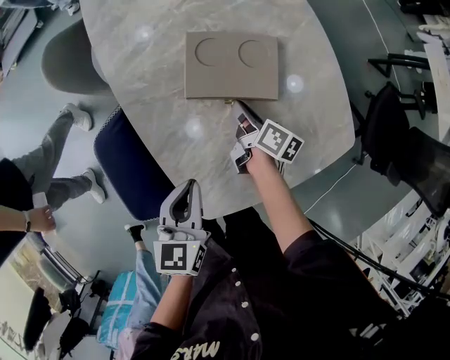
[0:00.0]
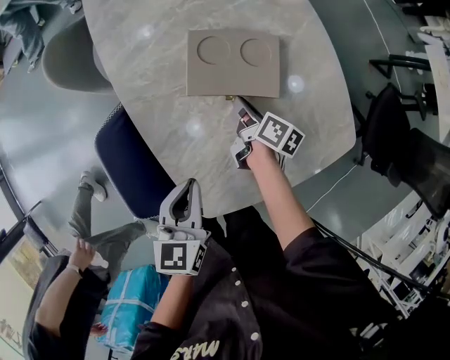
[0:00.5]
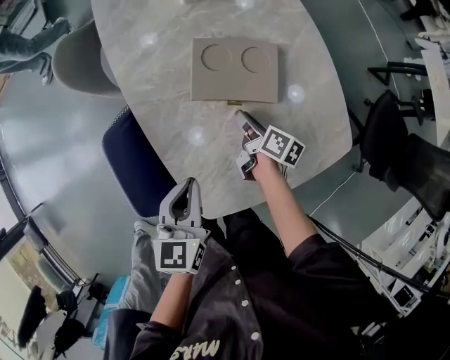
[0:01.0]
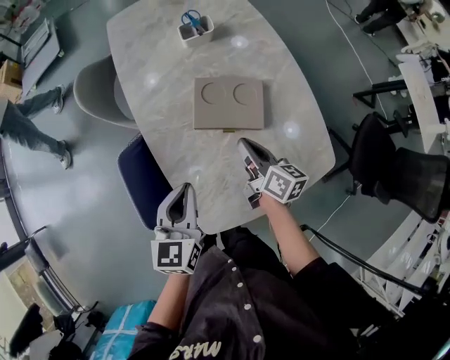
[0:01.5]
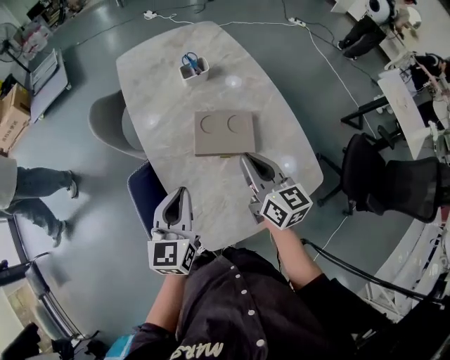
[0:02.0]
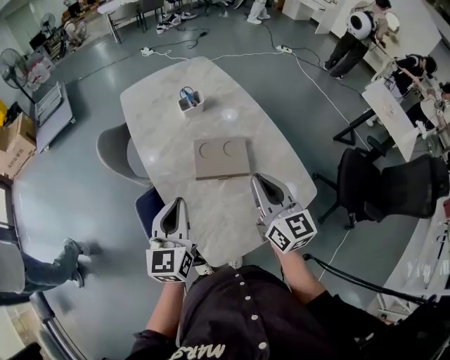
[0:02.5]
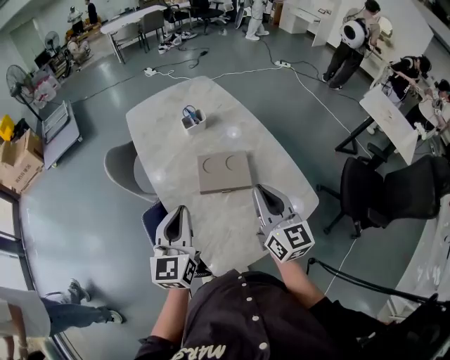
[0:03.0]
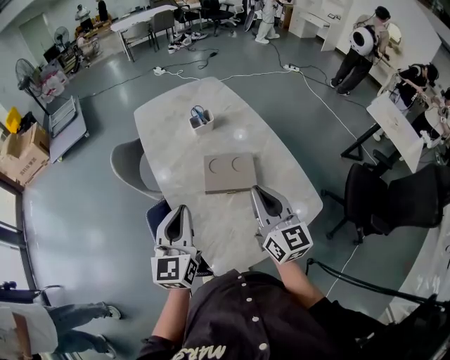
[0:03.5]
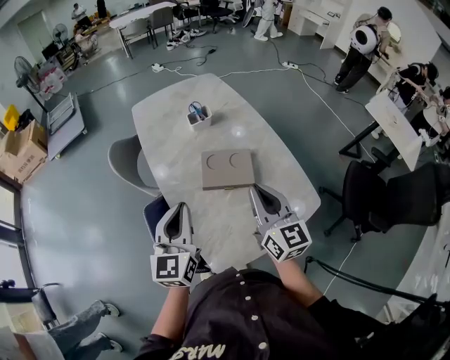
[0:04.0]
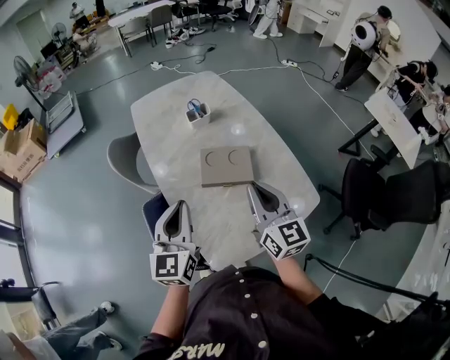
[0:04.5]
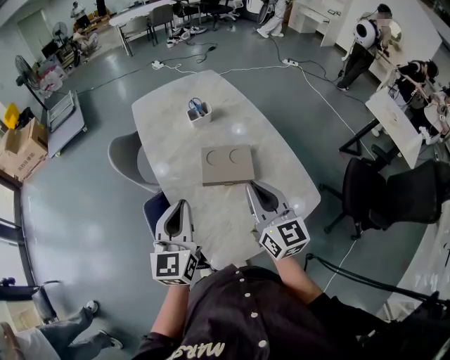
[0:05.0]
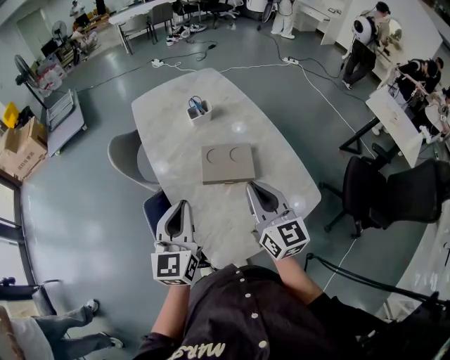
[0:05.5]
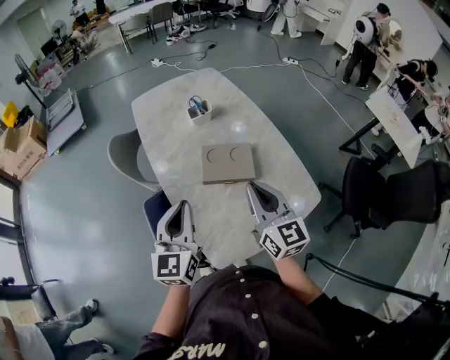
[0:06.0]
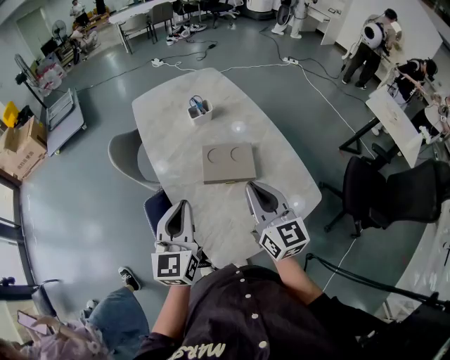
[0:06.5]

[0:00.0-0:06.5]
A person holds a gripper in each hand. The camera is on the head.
0:00.0 to 0:02.0: The left gripper heads upward, covering some 15 cm, and turns by some 20 degrees. Meanwhile the right gripper moves upward, about 30 cm, and rotates around the line of its fingers by roughly 50 degrees, counterclockwise from behind.
0:02.0 to 0:04.5: The left gripper goes approximately 10 cm upward; the right gripper is displaced upward and backward by approximately 10 cm.
0:04.5 to 0:06.5: The grippers stay close to where they were, moving slightly.

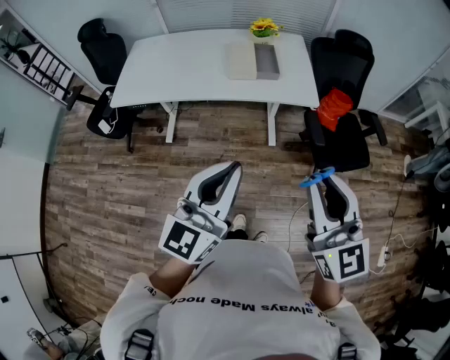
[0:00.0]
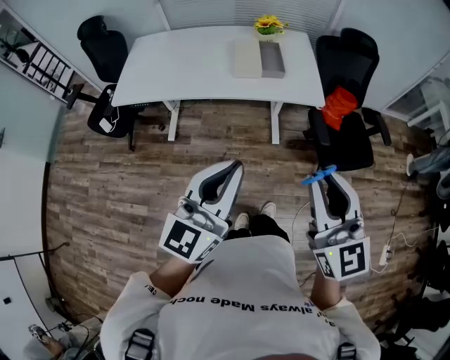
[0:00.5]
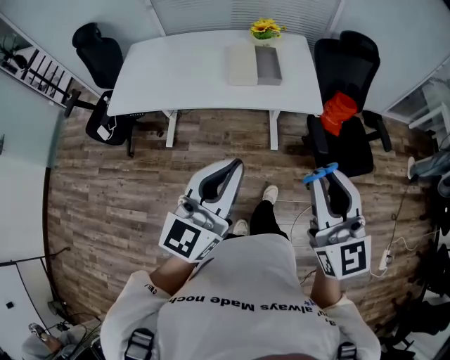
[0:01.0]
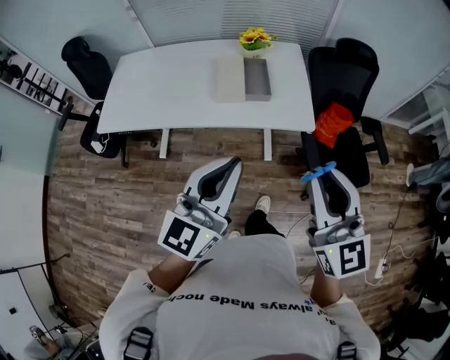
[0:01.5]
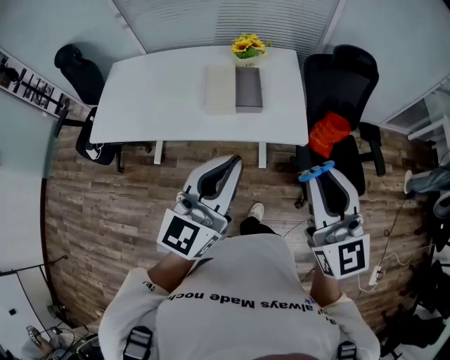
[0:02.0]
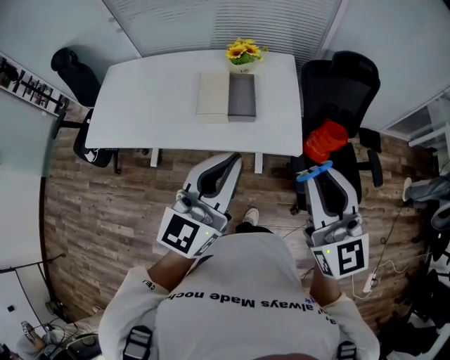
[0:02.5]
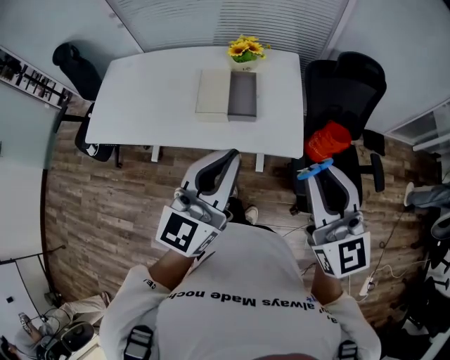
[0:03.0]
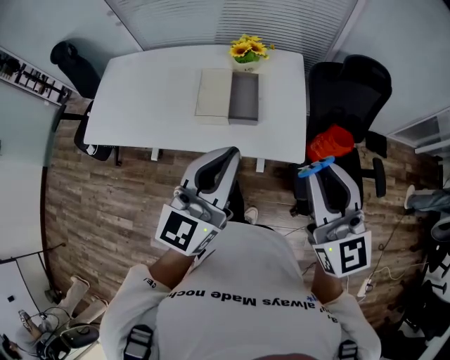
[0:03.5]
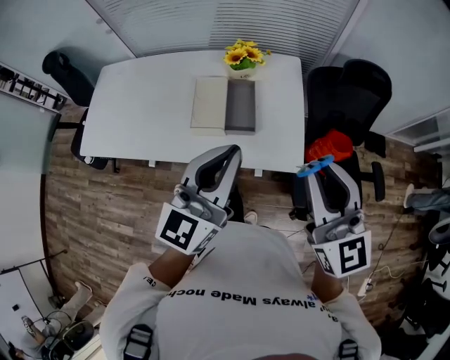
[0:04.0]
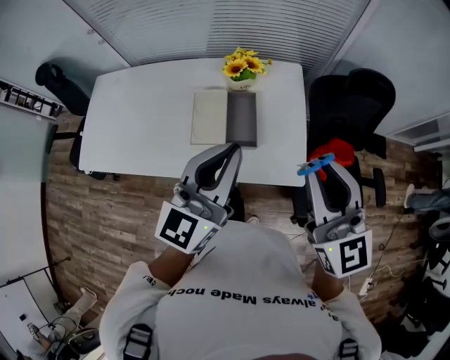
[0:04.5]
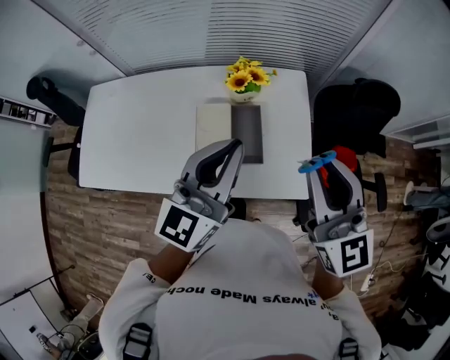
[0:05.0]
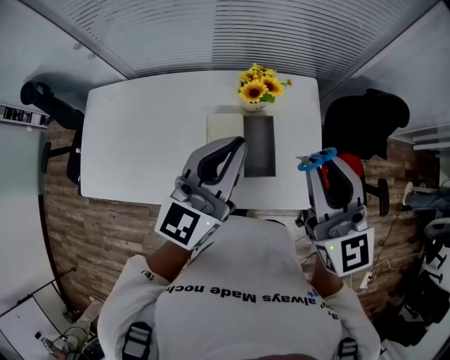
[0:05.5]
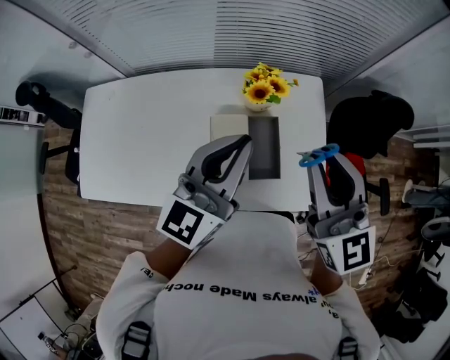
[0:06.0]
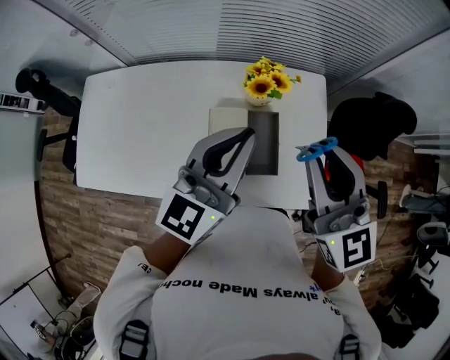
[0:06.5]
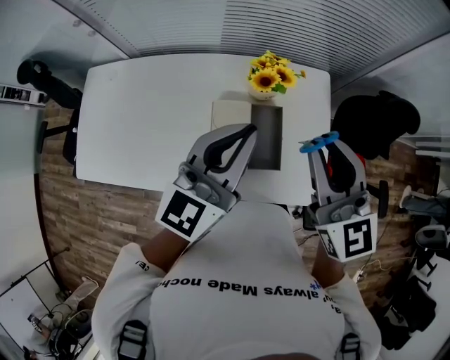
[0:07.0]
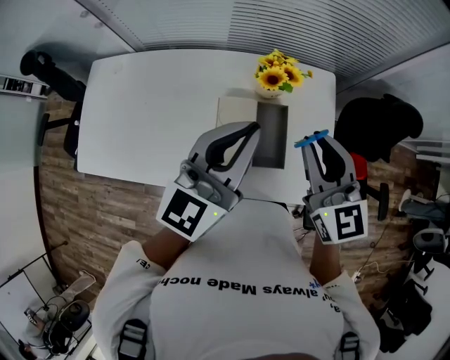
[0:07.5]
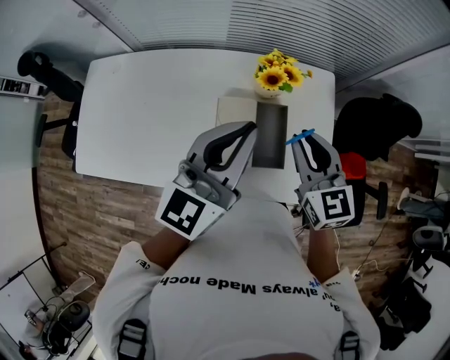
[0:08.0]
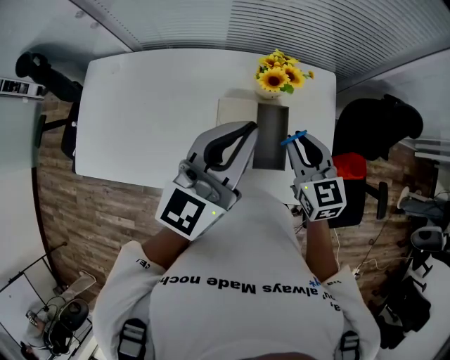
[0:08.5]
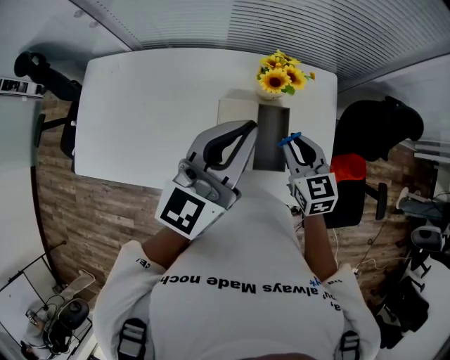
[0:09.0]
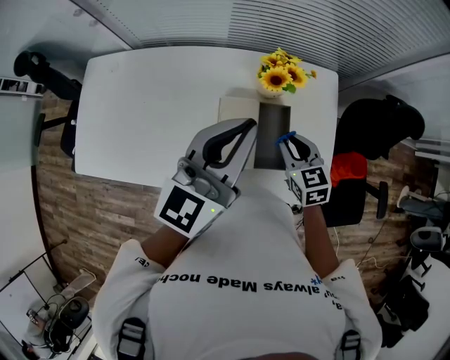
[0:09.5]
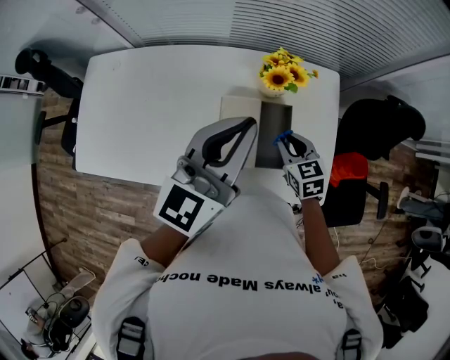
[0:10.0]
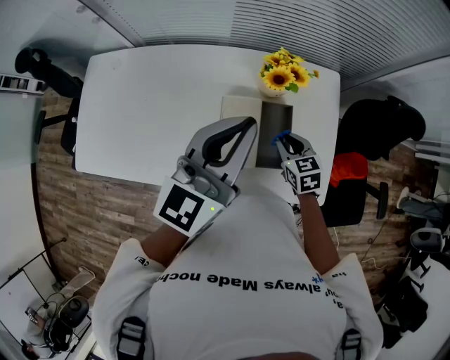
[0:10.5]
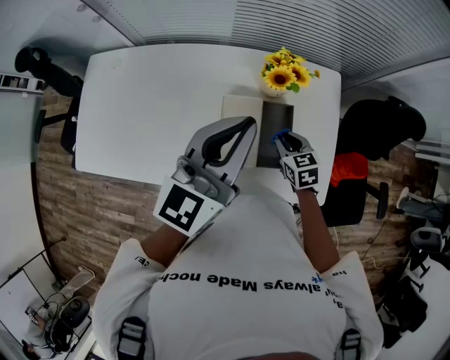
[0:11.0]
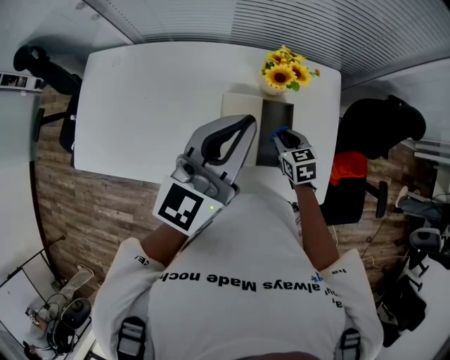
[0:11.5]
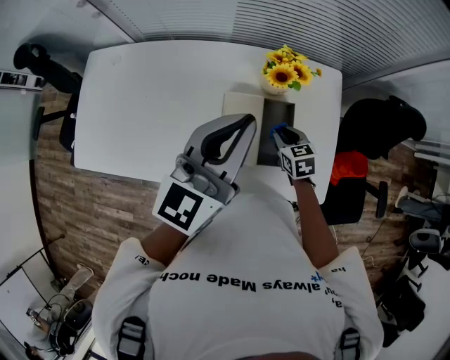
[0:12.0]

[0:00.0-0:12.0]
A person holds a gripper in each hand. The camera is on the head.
0:00.0 to 0:02.0: Both grippers travel together forward, about 25 cm.
0:02.0 to 0:04.0: Both grippers travel together forward, some 15 cm.
0:04.0 to 0:06.0: The two grippers go roughly 25 cm forward and to the left.
0:06.0 to 0:08.0: The right gripper moves downward, approximately 15 cm.
0:08.0 to 0:10.0: The right gripper heads downward, covering some 15 cm, and swivels approximately 20 degrees.
0:10.0 to 0:12.0: The right gripper travels downward by some 5 cm.

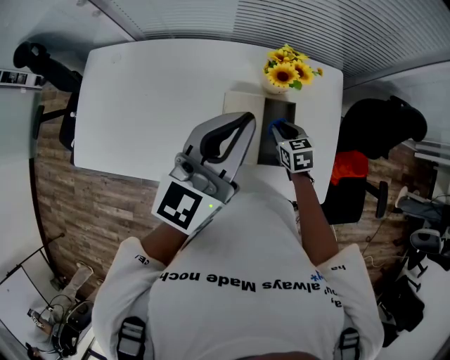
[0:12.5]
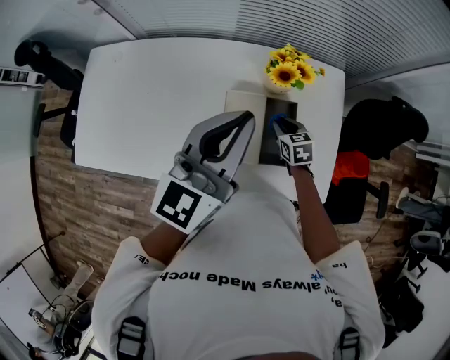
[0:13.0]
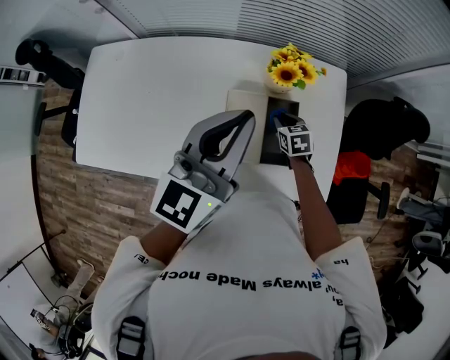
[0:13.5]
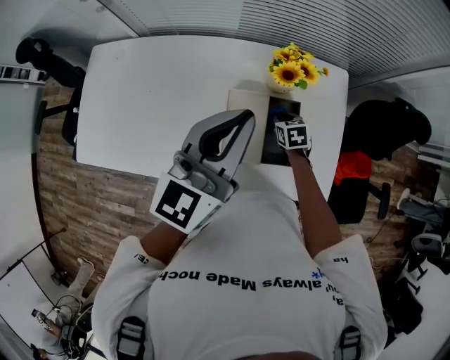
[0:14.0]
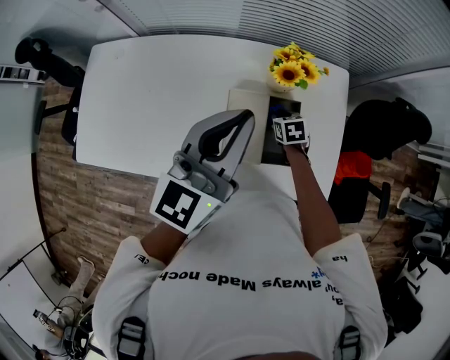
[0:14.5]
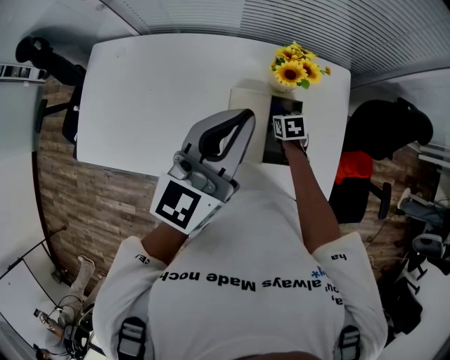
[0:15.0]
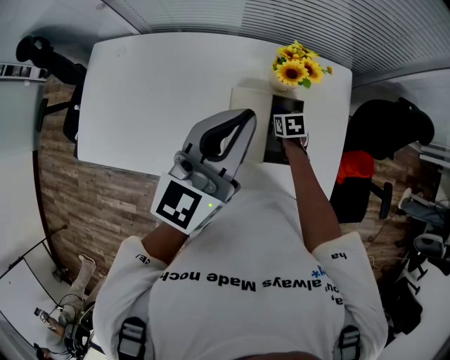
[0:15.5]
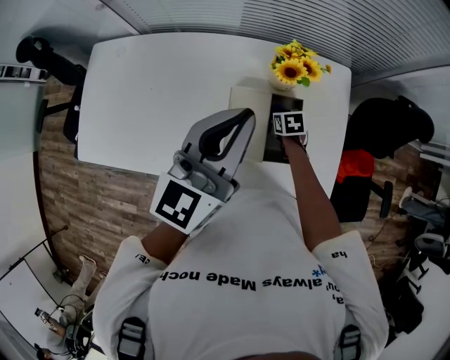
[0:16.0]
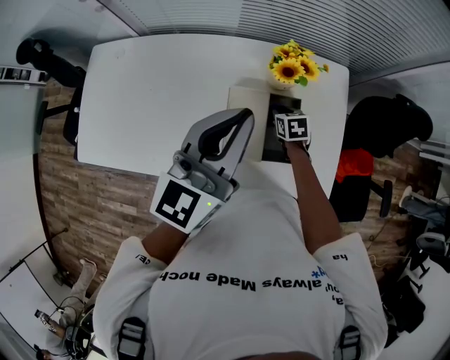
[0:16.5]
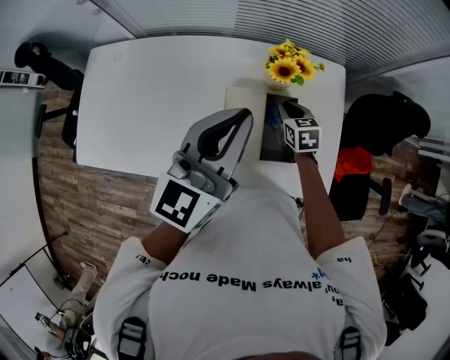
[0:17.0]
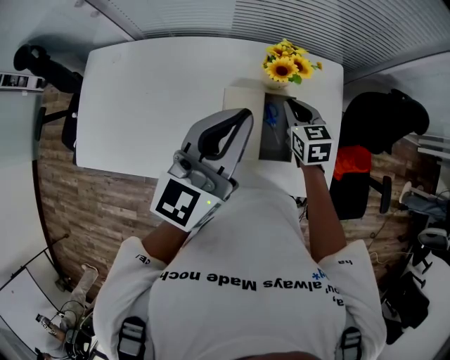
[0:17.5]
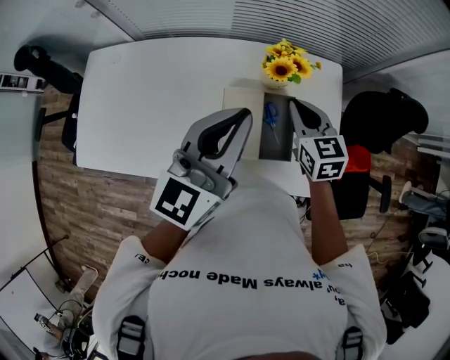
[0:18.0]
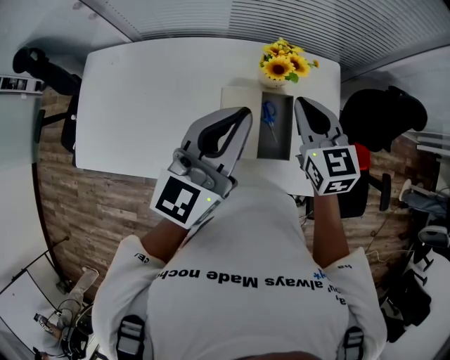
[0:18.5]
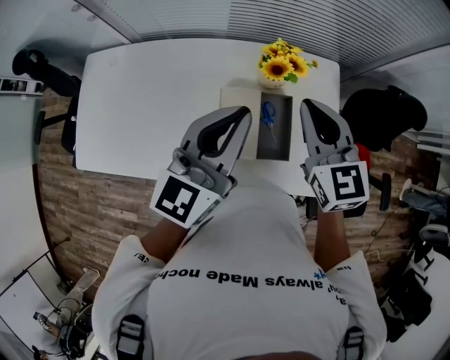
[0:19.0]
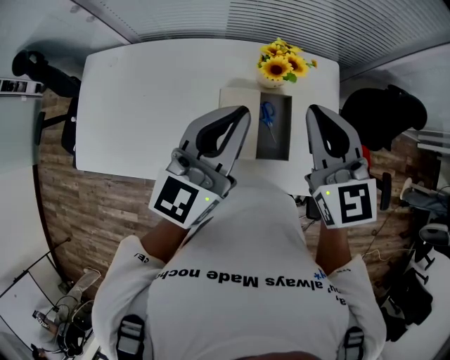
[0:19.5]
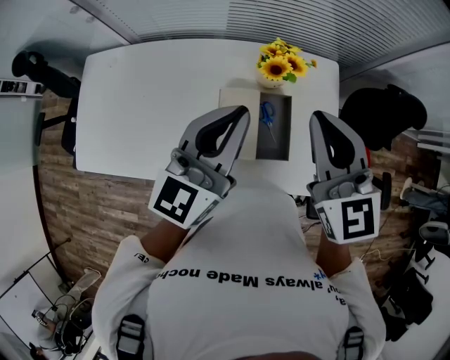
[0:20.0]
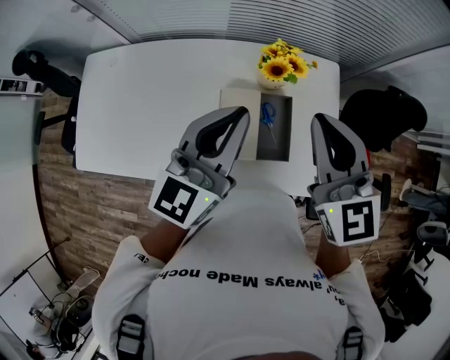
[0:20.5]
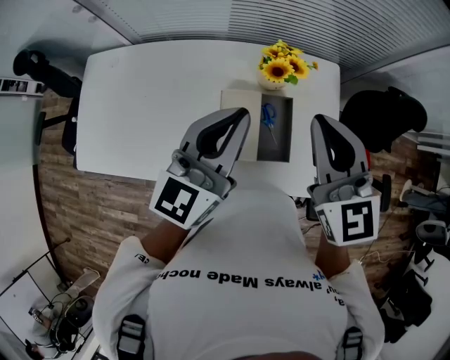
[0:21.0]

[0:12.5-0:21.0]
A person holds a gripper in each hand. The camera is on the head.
0:12.5 to 0:14.5: The right gripper moves some 5 cm.
0:14.5 to 0:16.5: The grippers move only a little.
0:16.5 to 0:19.0: The right gripper shifts roughly 30 cm upward, and points its fingers approximately 40 degrees further upward.
0:19.0 to 0:21.0: The right gripper goes roughly 5 cm upward.
